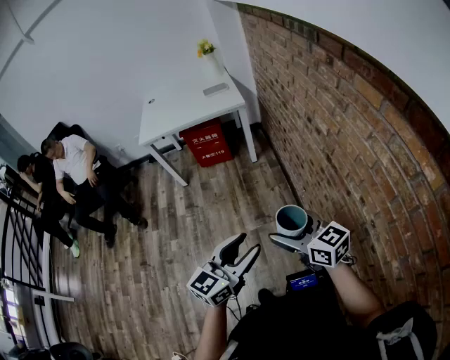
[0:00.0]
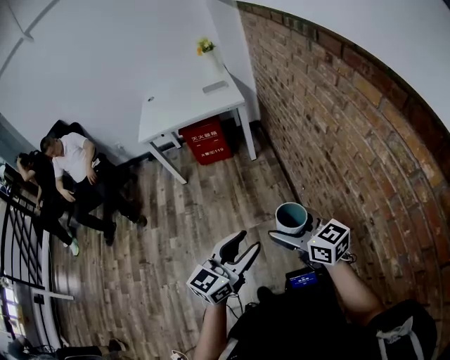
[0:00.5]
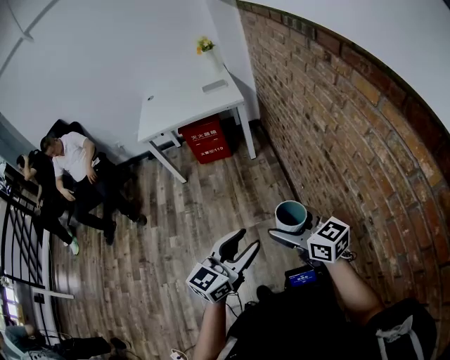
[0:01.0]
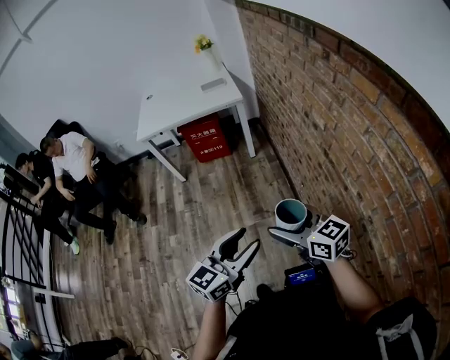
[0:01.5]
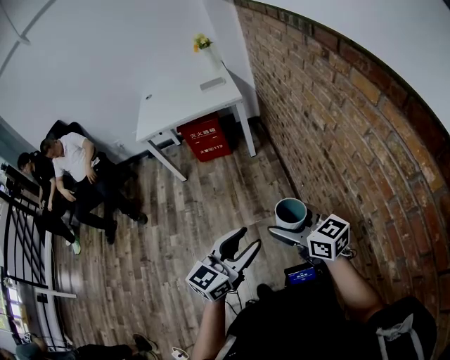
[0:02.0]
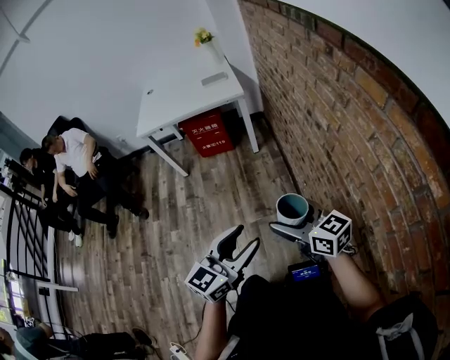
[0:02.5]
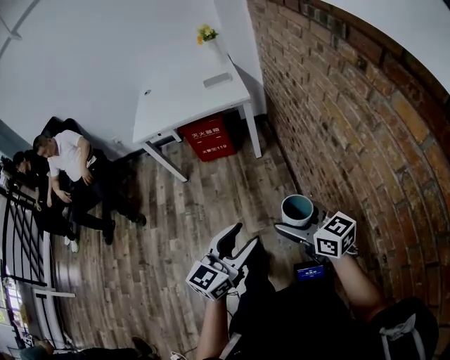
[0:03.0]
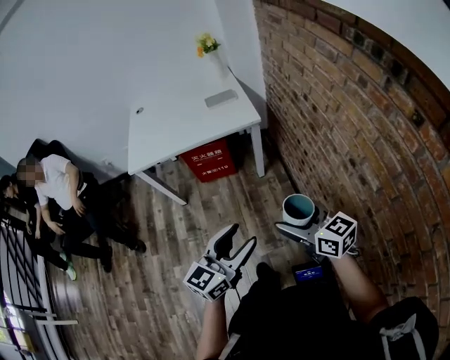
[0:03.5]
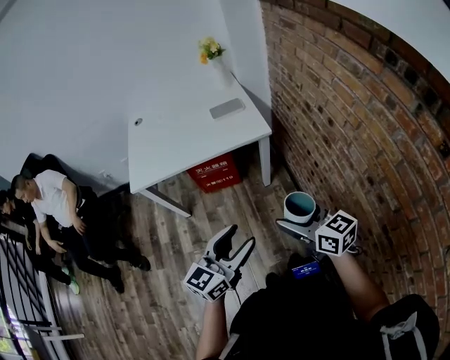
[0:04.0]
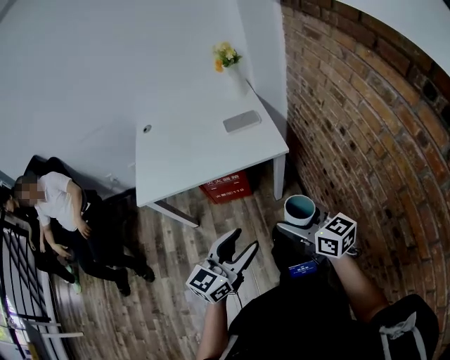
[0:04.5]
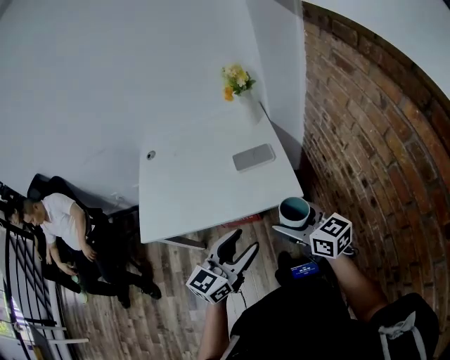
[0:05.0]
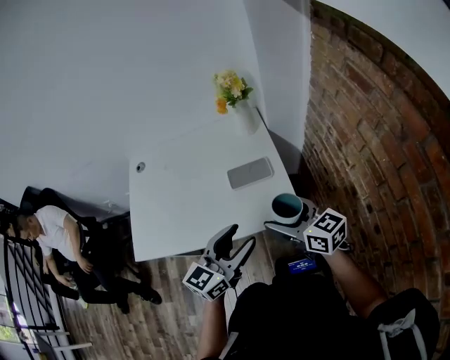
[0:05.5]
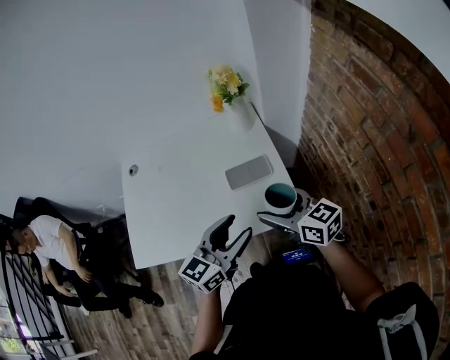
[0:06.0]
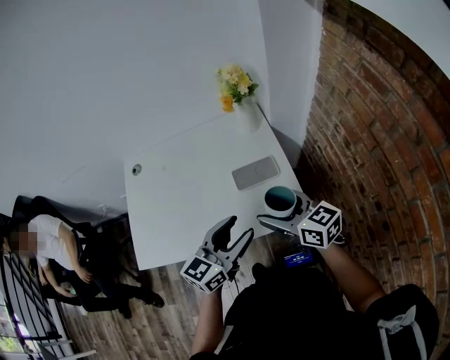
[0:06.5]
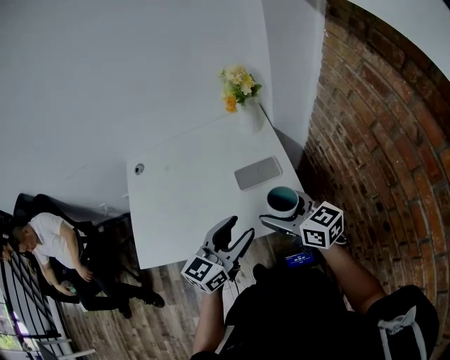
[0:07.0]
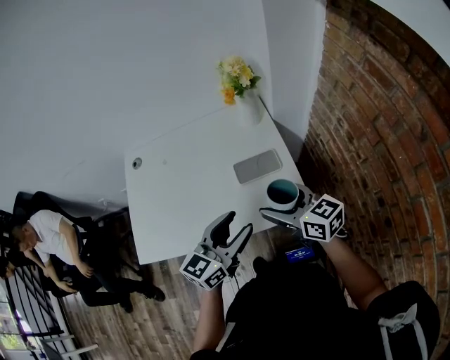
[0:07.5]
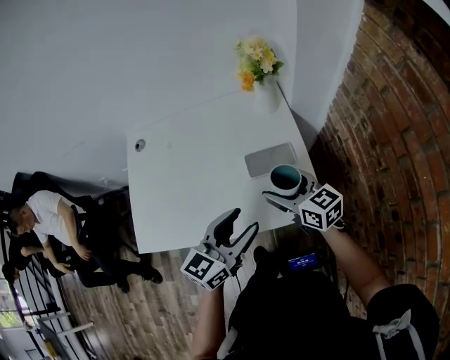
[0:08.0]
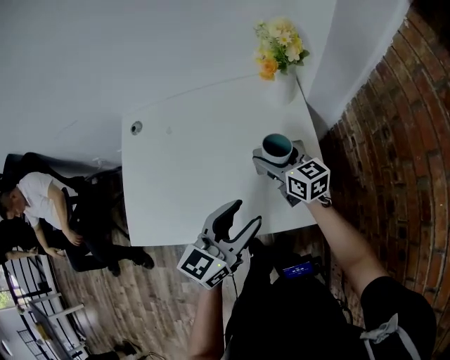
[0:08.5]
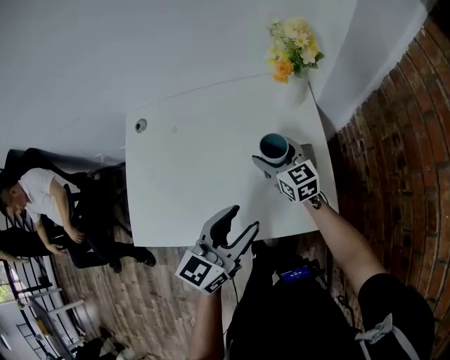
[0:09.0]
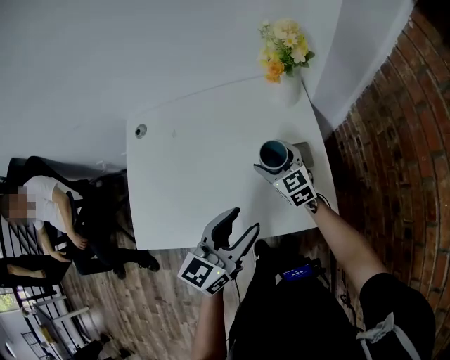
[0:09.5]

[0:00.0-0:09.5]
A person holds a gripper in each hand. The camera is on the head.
0.0 to 2.0 s: There are only small adjustments of the grippers.
2.0 to 4.0 s: Both grippers are carried forward, approximately 40 cm.
4.0 to 5.5 s: Both grippers are carried forward, roughly 40 cm.
5.5 to 7.5 s: The left gripper heads forward, covering roughly 5 cm. Meanwhile the right gripper shifts approximately 5 cm forward and to the left.
7.5 to 9.5 s: The right gripper heads forward, downward and to the left, covering approximately 25 cm, and swivels approximately 30 degrees, while the left gripper heads forward, covering roughly 5 cm.

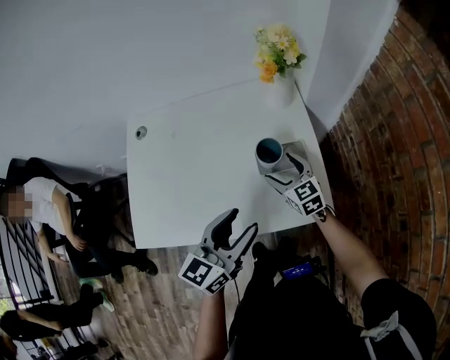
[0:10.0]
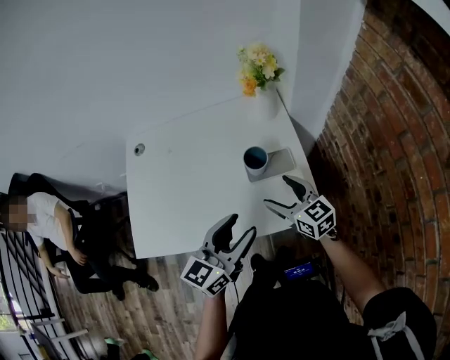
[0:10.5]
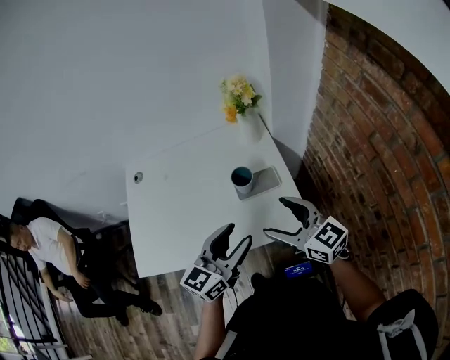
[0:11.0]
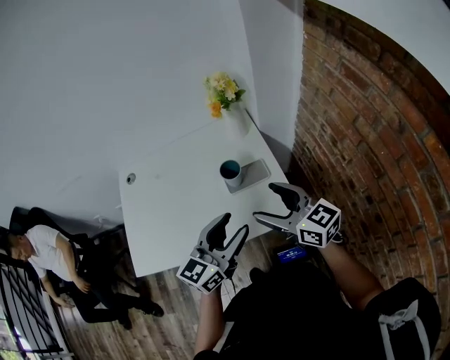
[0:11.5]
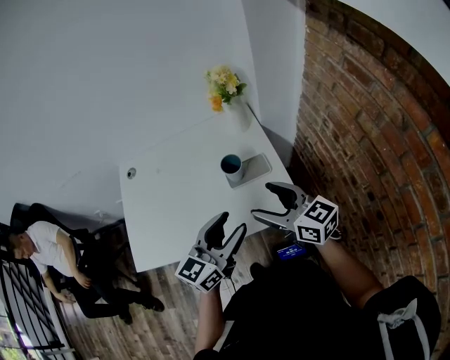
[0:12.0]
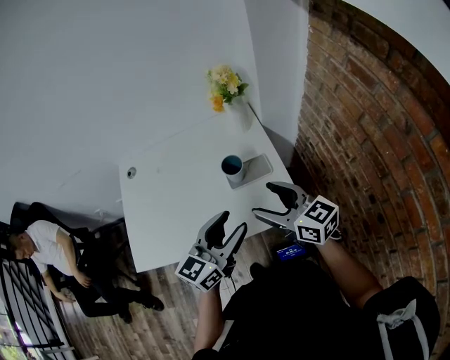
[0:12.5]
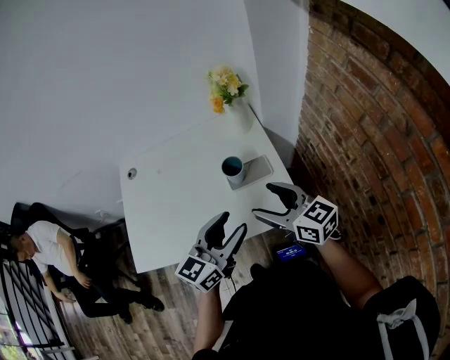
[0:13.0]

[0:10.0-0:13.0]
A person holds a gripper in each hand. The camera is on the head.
10.0 to 11.5 s: The left gripper travels to the right and upward by about 10 cm. Meanwhile the right gripper heads upward and backward, covering approximately 25 cm, and turns by roughly 20 degrees.
11.5 to 13.0 s: The grippers move only a little.

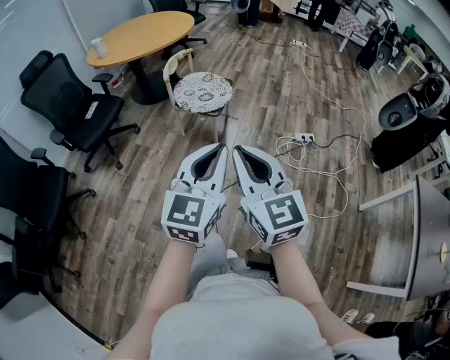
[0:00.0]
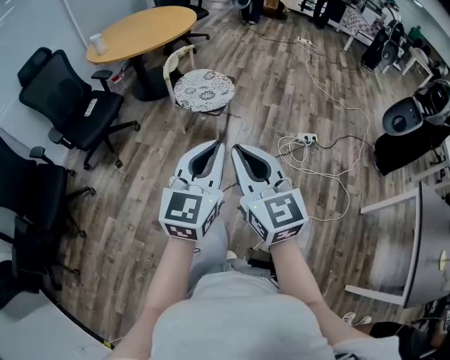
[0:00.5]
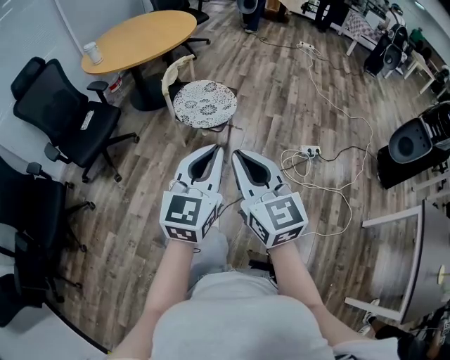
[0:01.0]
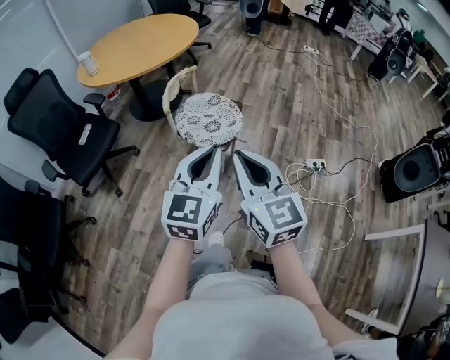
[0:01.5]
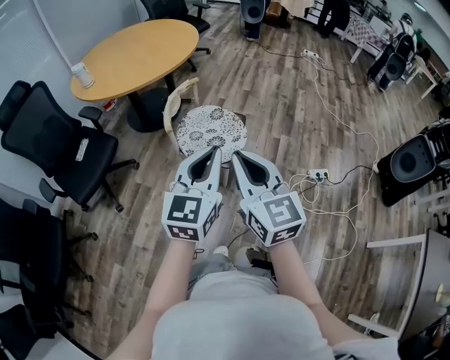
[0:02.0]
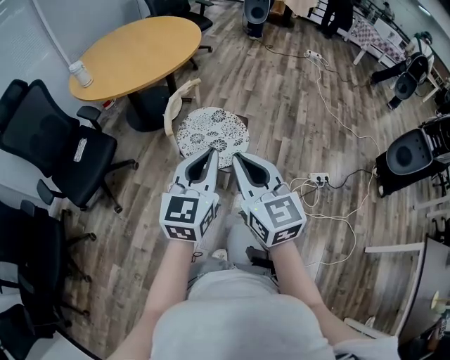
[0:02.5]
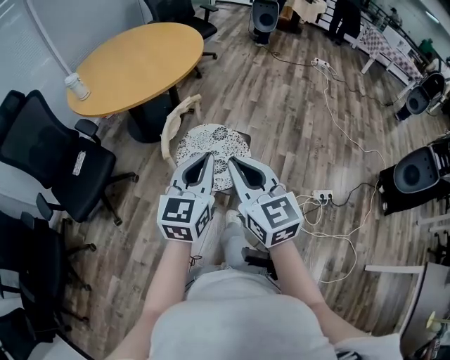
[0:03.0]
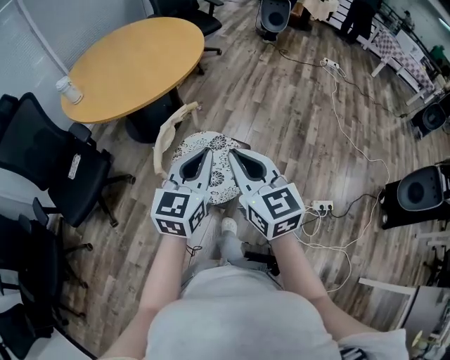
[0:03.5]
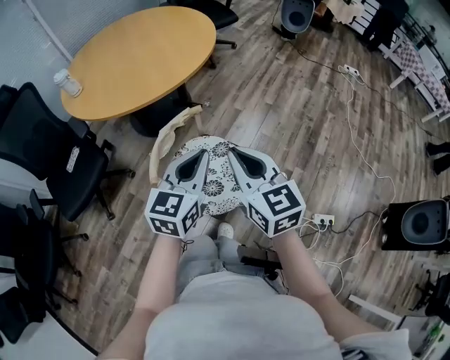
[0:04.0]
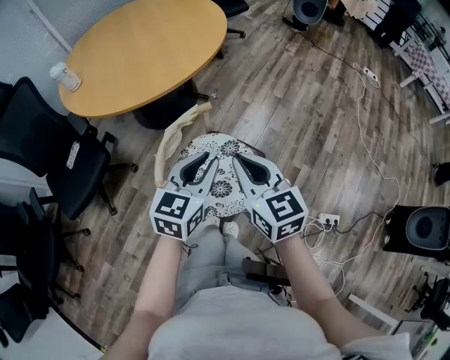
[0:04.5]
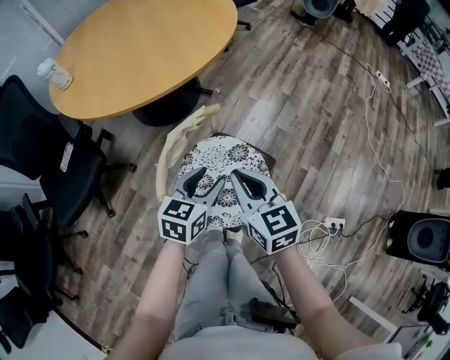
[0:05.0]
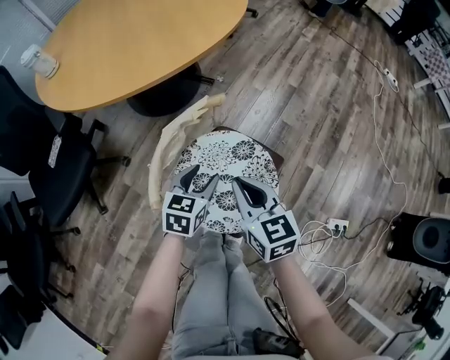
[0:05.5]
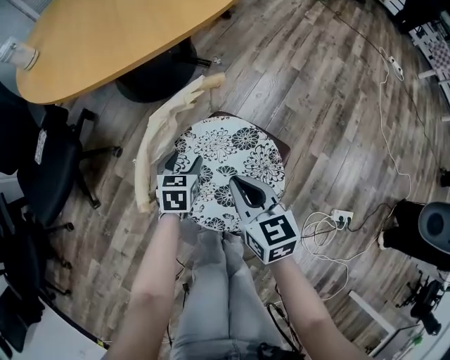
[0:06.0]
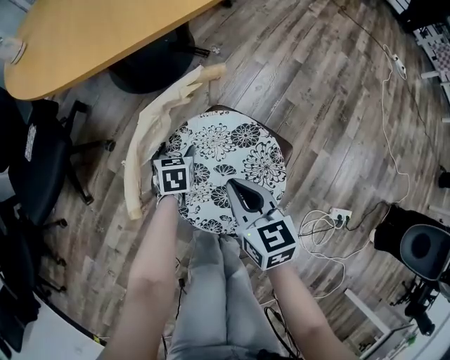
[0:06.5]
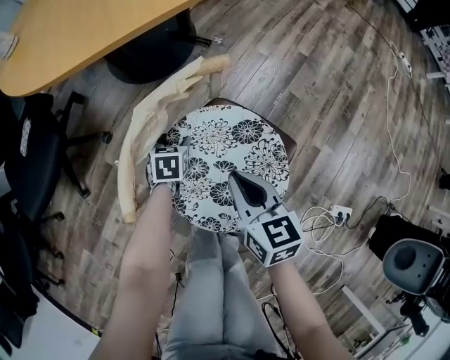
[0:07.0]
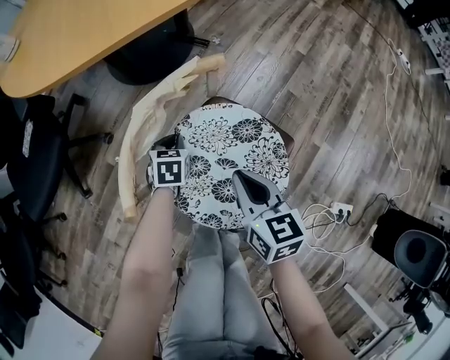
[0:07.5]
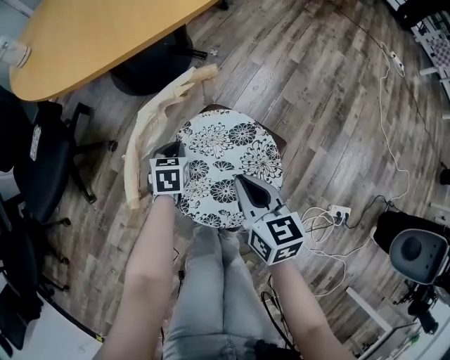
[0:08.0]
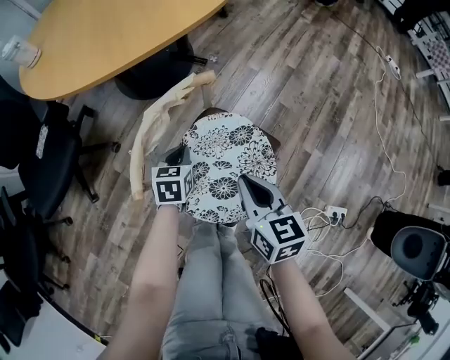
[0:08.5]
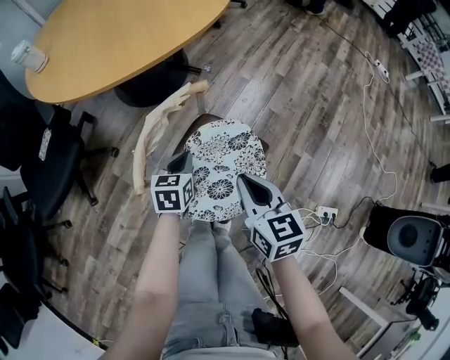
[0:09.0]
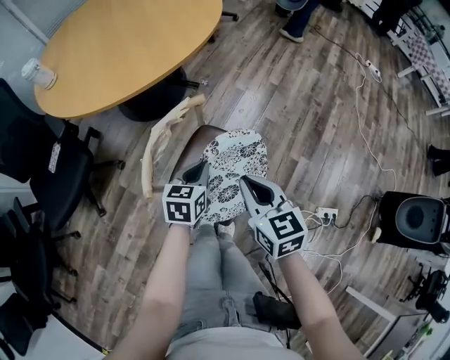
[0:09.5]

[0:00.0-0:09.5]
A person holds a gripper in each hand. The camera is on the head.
0.0 to 2.0 s: The grippers both shift forward by roughly 40 cm.
2.0 to 4.0 s: The grippers both shift forward by about 35 cm.
4.0 to 5.5 s: Both grippers travel together downward, approximately 30 cm. The left gripper changes its angle by approximately 30 degrees, and opens.
5.5 to 7.5 s: The left gripper travels downward by some 20 cm, rotates approximately 20 degrees, and closes, while the right gripper moves downward, roughly 10 cm.
7.5 to 9.5 s: The right gripper is displaced upward by approximately 20 cm; the left gripper goes approximately 25 cm upward and to the right, and swivels approximately 20 degrees.

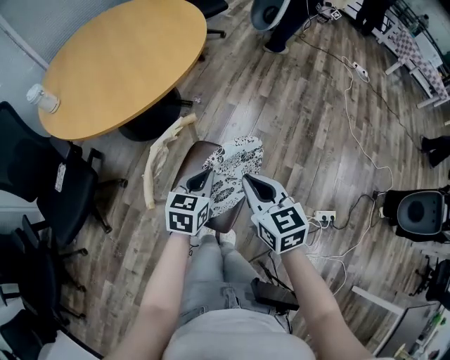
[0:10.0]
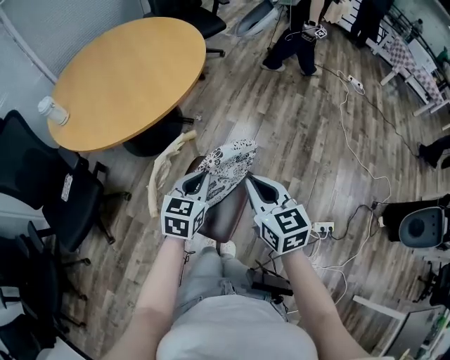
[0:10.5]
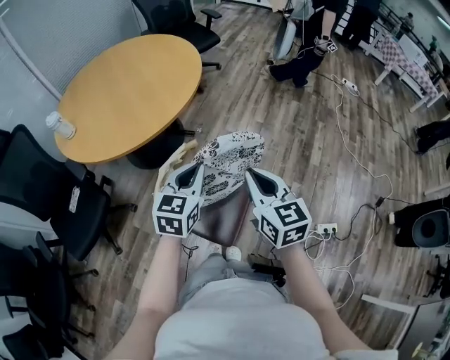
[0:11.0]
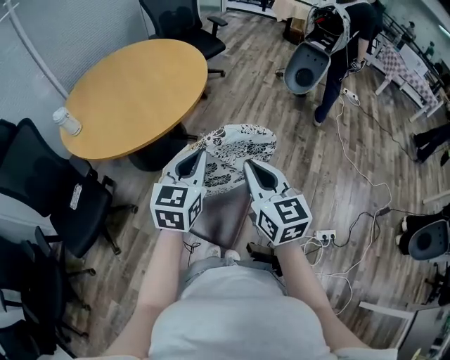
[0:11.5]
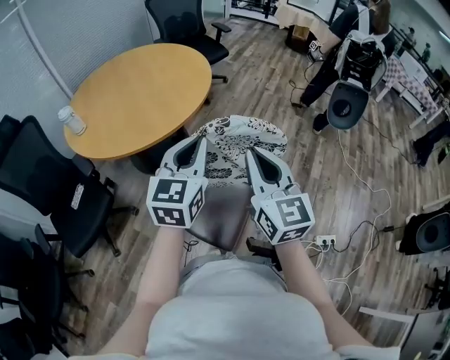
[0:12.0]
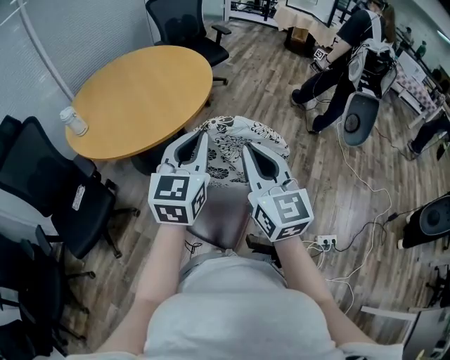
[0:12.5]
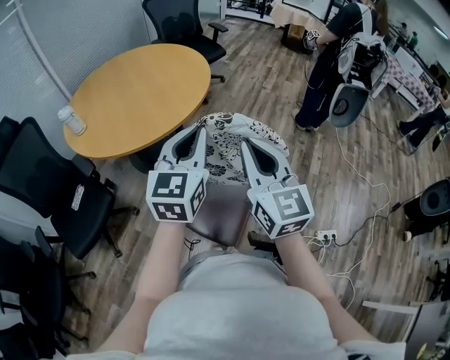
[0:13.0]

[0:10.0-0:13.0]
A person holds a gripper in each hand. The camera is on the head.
10.0 to 11.5 s: The grippers both shift upward by roughly 20 cm. The left gripper swivels roughly 20 degrees.
11.5 to 13.0 s: The grippers both shift upward by about 10 cm.

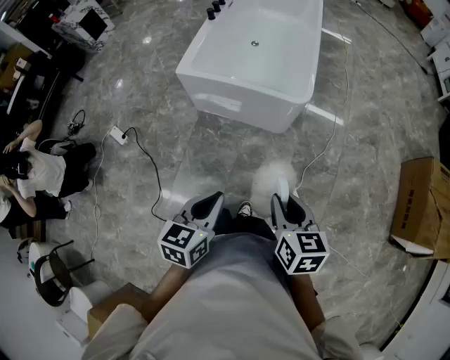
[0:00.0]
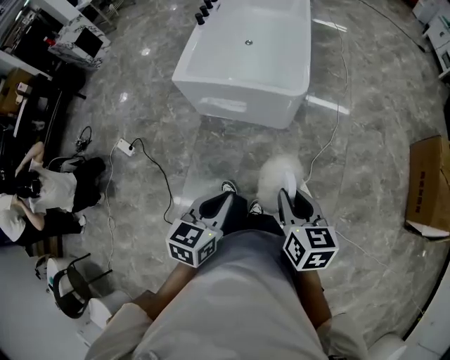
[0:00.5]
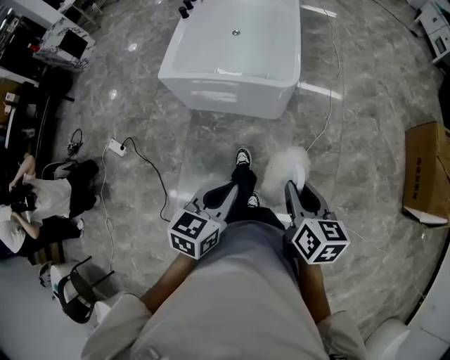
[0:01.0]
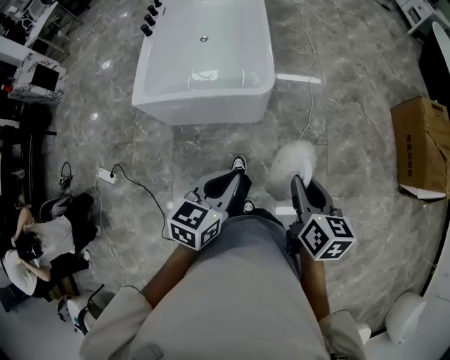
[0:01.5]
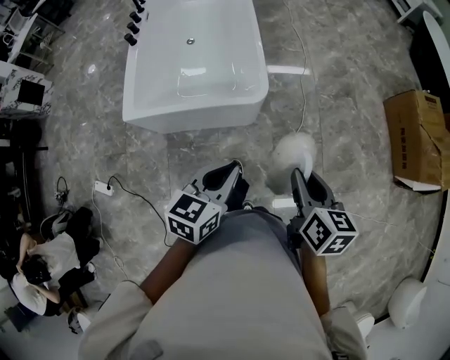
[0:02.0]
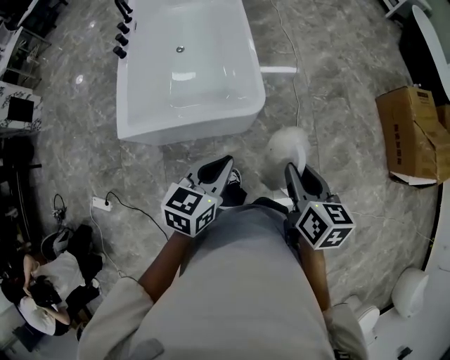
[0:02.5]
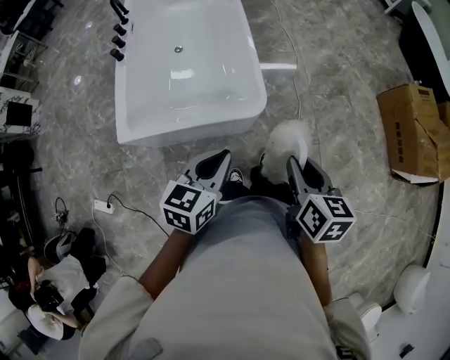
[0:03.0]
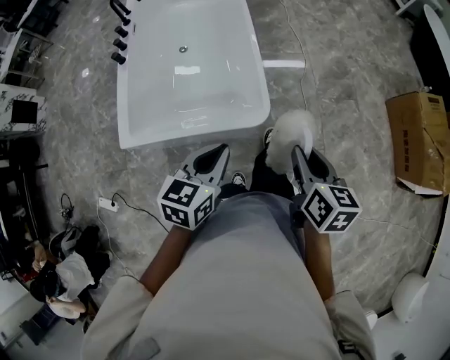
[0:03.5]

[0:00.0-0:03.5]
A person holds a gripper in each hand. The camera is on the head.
0.0 to 2.0 s: The left gripper moves some 25 cm, and turns by about 30 degrees. Meanwhile the right gripper changes place by roughly 20 cm, and swivels approximately 30 degrees.
2.0 to 3.5 s: Both grippers travel together forward, some 15 cm.
